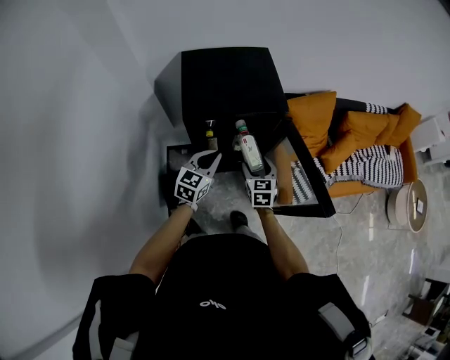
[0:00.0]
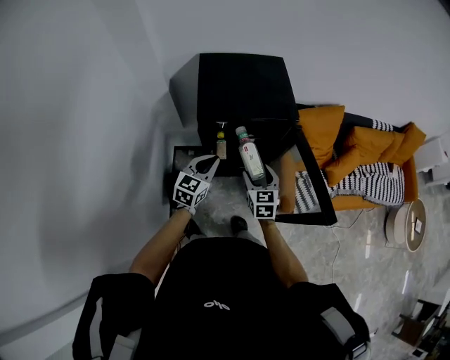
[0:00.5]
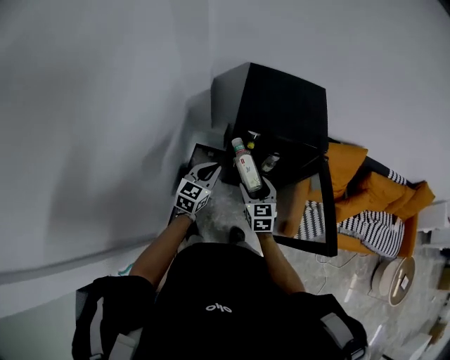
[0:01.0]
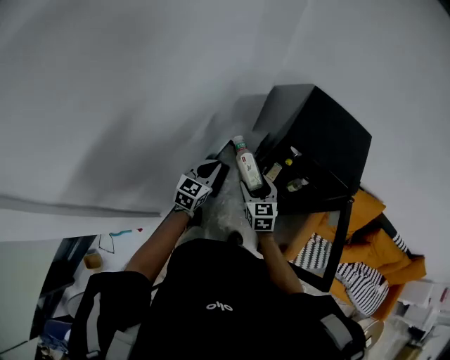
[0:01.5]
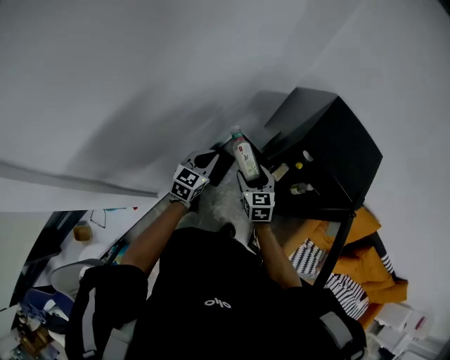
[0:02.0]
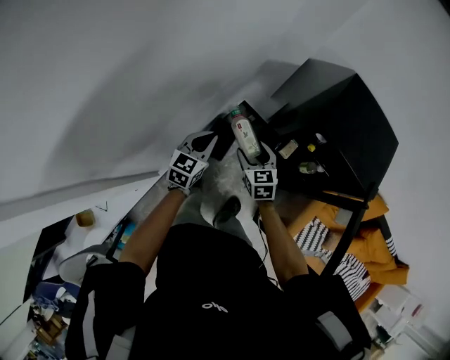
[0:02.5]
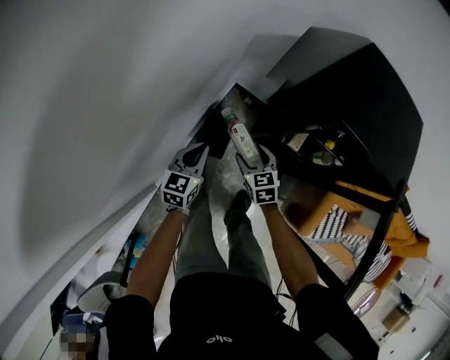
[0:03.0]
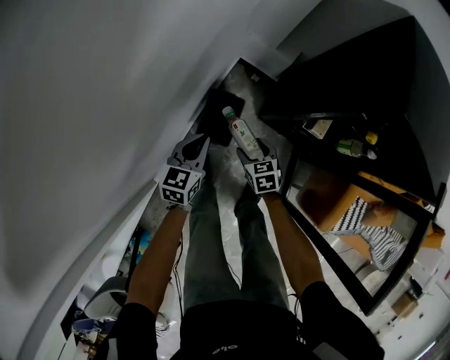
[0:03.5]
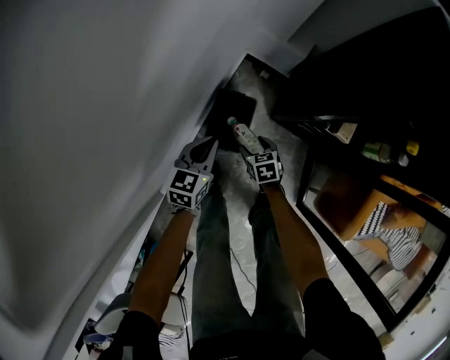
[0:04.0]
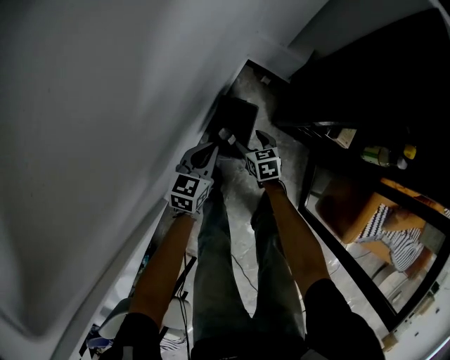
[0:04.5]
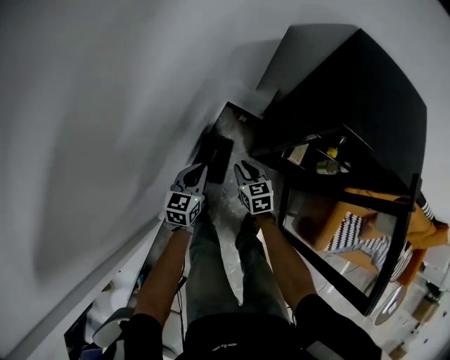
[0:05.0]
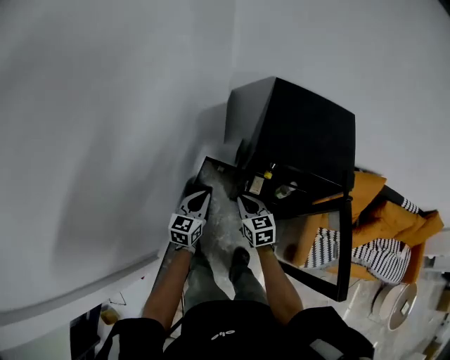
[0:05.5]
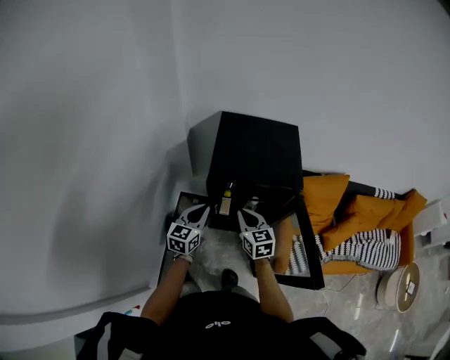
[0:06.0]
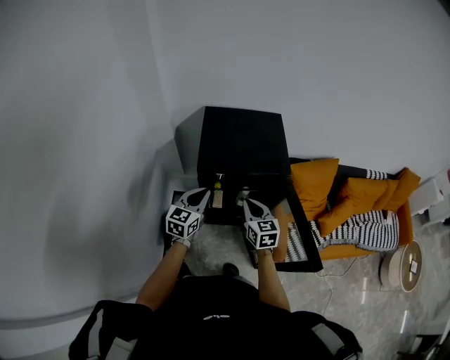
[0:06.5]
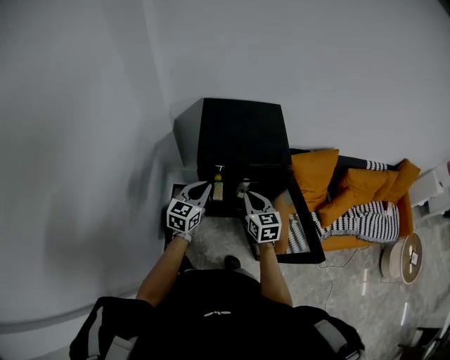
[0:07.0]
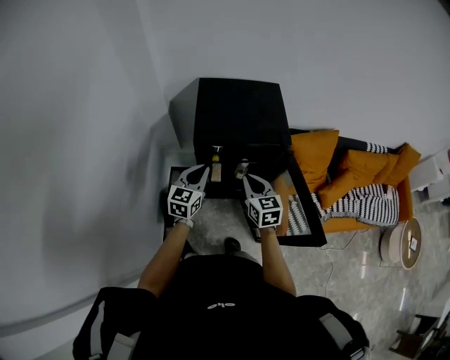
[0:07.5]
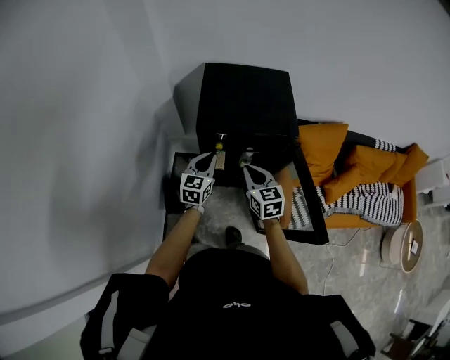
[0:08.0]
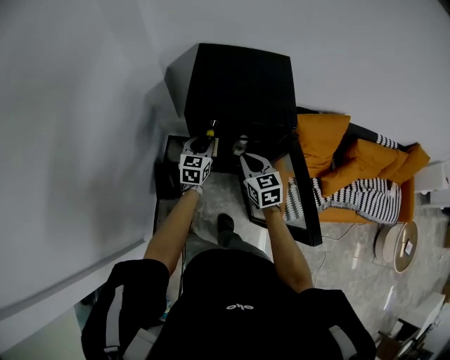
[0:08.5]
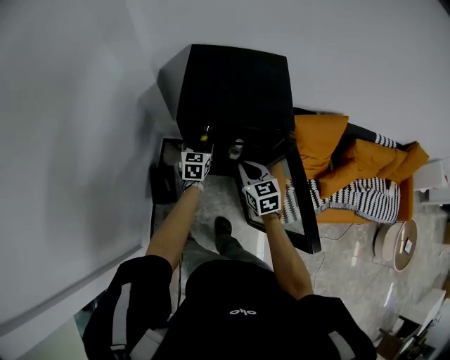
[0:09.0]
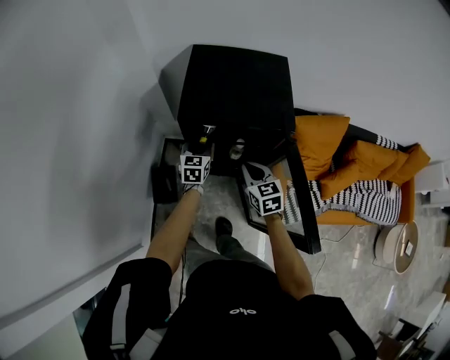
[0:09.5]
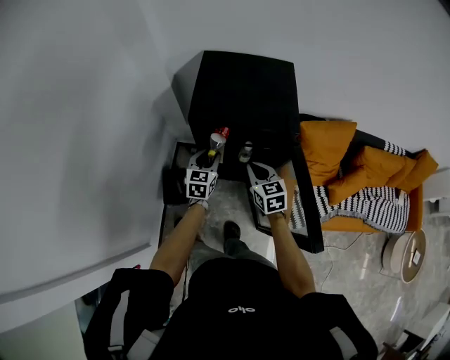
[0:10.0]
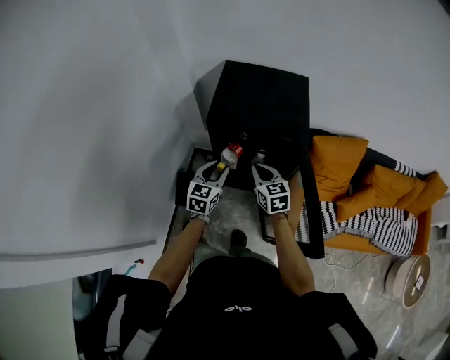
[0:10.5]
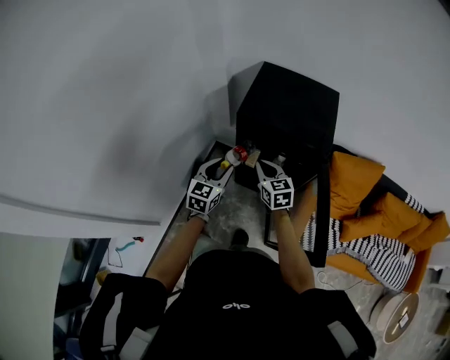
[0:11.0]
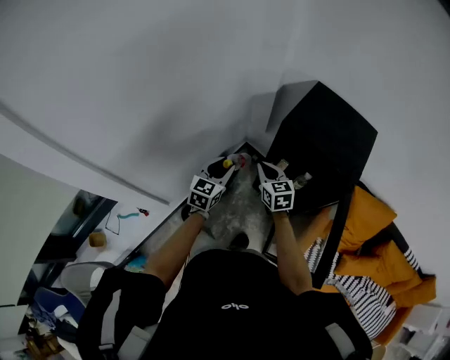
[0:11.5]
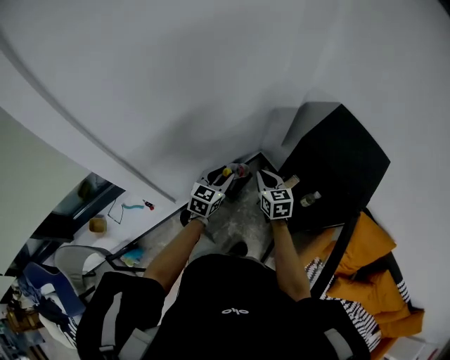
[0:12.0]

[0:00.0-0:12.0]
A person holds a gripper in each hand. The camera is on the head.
0:00.0 to 0:02.0: The right gripper shifts by approximately 30 cm, and changes its angle by roughly 50 degrees. Meanwhile the left gripper moves approximately 30 cm, and changes its angle by some 50 degrees.
0:02.0 to 0:04.0: The grippers both shift downward by roughly 50 cm. The right gripper swivels approximately 30 degrees.
0:04.0 to 0:06.0: Both grippers travel together upward and to the right, some 60 cm. The left gripper turns by approximately 20 degrees. Meanwhile the right gripper points its fingers about 30 degrees further upward, and closes.
0:06.0 to 0:08.0: The grippers both shift to the right by some 5 cm.
0:08.0 to 0:10.0: Both grippers move downward, approximately 5 cm. The left gripper opens its fingers.
0:10.0 to 0:12.0: The left gripper moves approximately 30 cm, and turns by approximately 30 degrees. Meanwhile the right gripper moves about 25 cm, and swivels some 40 degrees.

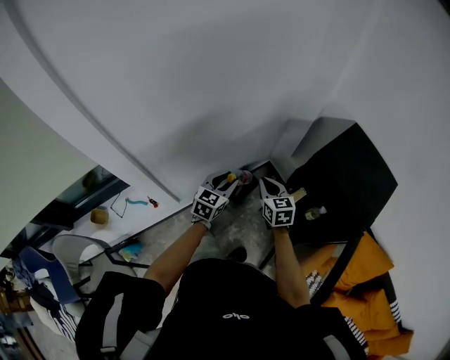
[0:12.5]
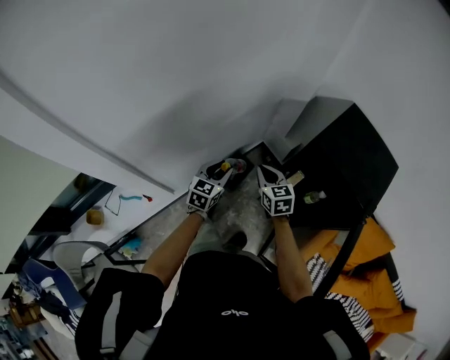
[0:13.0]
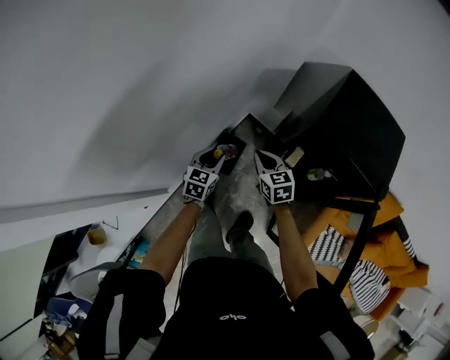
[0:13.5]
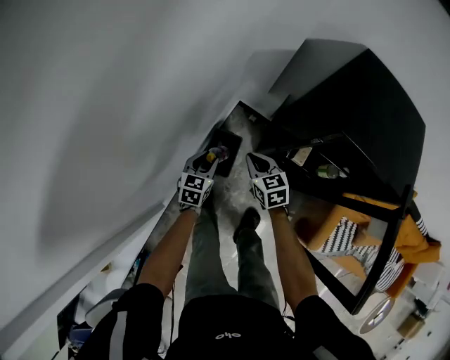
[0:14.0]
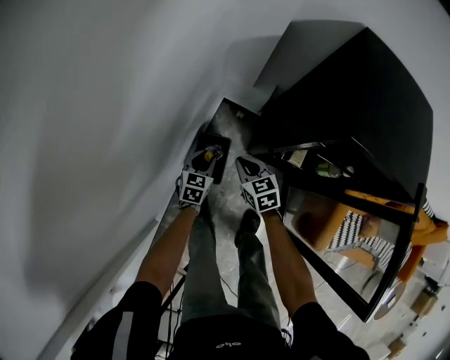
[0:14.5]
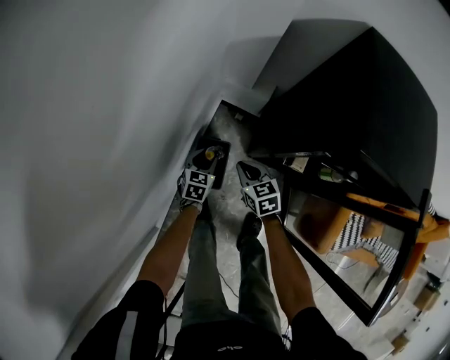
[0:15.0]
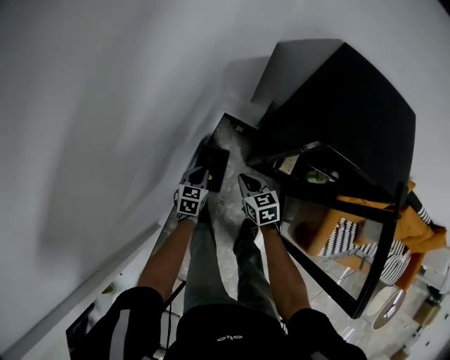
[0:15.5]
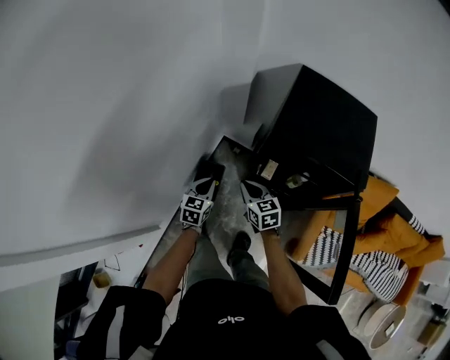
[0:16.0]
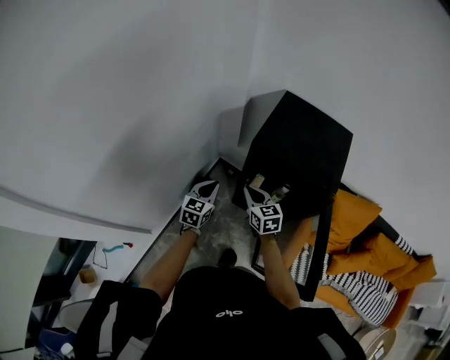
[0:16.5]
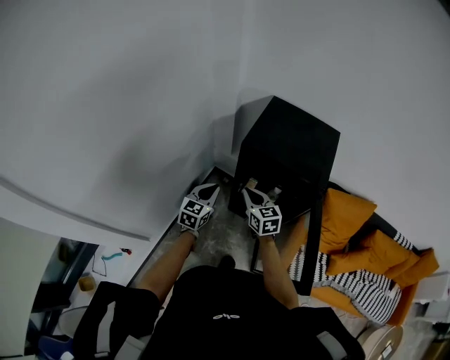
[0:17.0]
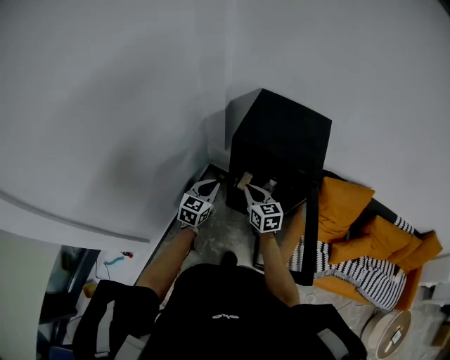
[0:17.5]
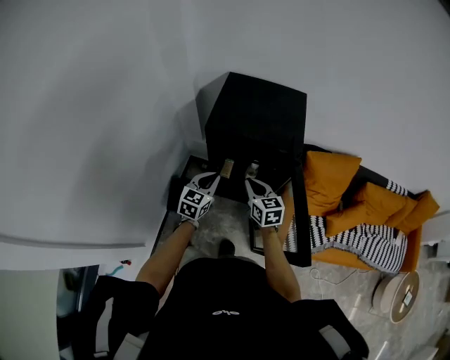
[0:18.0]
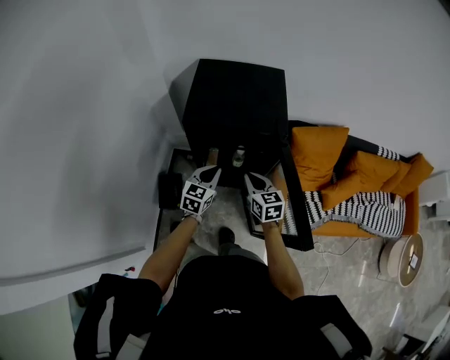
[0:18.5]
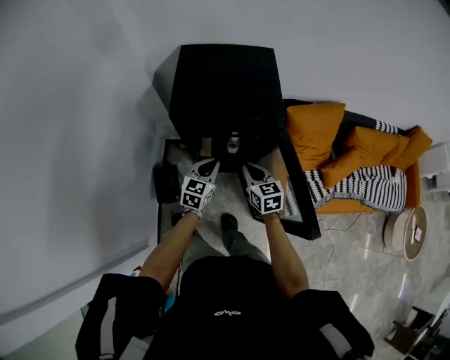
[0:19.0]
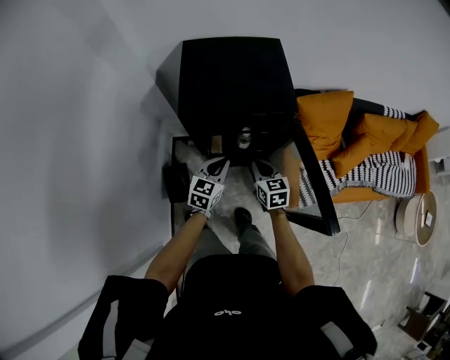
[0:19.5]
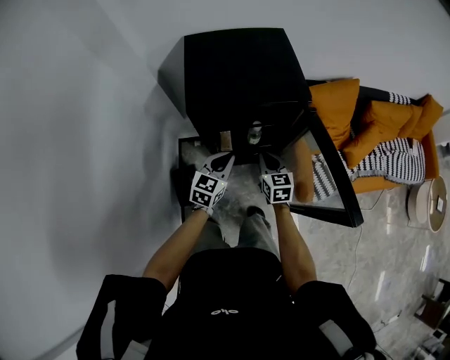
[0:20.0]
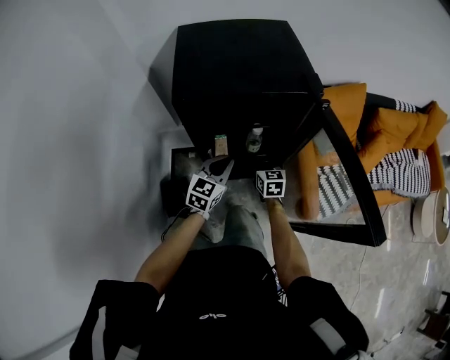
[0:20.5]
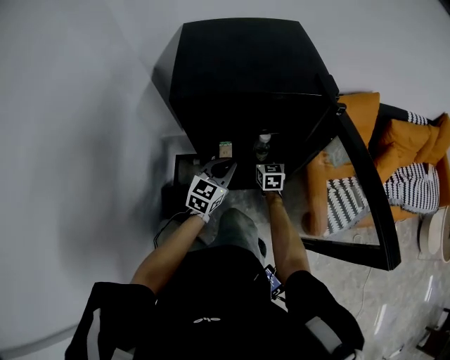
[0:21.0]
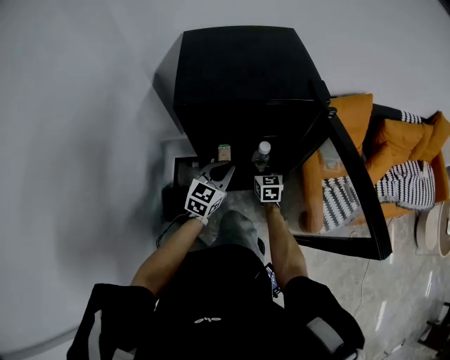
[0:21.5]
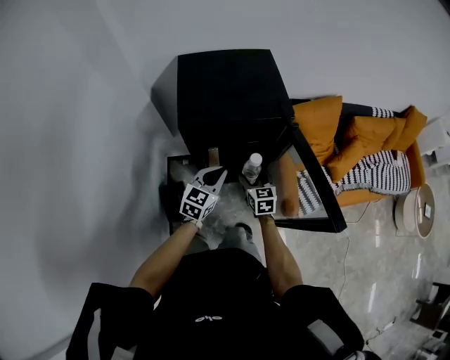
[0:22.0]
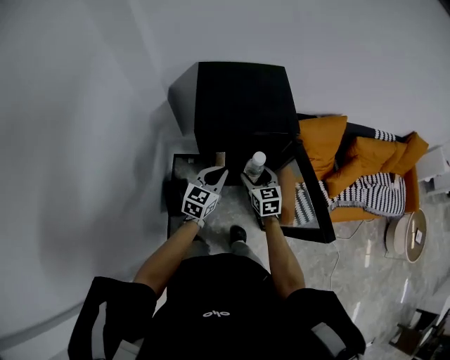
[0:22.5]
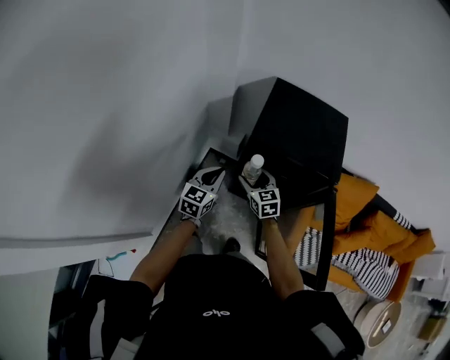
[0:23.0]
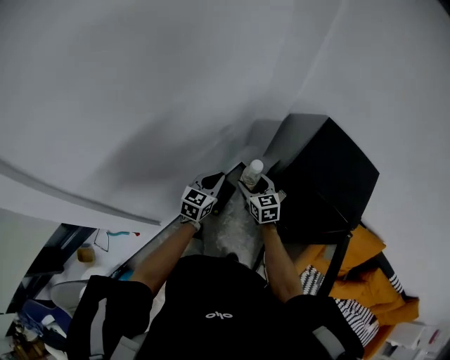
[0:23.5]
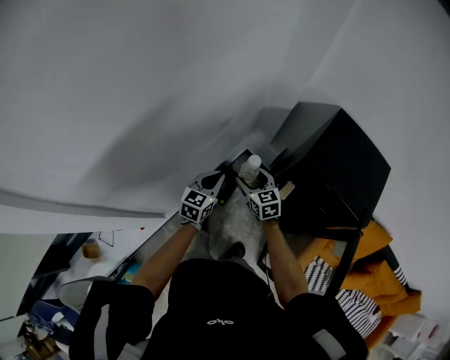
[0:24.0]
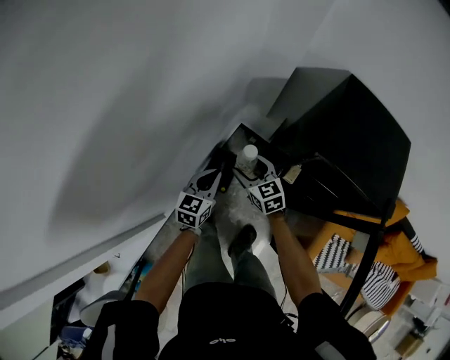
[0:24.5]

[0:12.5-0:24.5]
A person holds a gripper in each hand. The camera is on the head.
0:12.5 to 0:14.5: The grippers both shift downward and forward by roughly 40 cm. The right gripper rotates some 30 degrees; the left gripper swivels some 30 degrees.
0:14.5 to 0:16.5: The left gripper moves upward, some 35 cm, and closes its fingers. Meanwhile the right gripper goes approximately 35 cm upward, to the right and backward.
0:16.5 to 0:18.5: The left gripper moves some 20 cm, and rotates roughly 30 degrees. Meanwhile the right gripper changes place by about 20 cm, and changes its angle by roughly 30 degrees.
0:18.5 to 0:20.5: The left gripper is displaced downward by some 15 cm, while the right gripper heads downward, covering roughly 25 cm, and opens up.
0:20.5 to 0:22.5: The two grippers go about 20 cm upward.
0:22.5 to 0:24.5: The right gripper shifts by some 35 cm, and changes its angle by roughly 50 degrees; the left gripper shifts by about 35 cm, and swivels approximately 40 degrees.

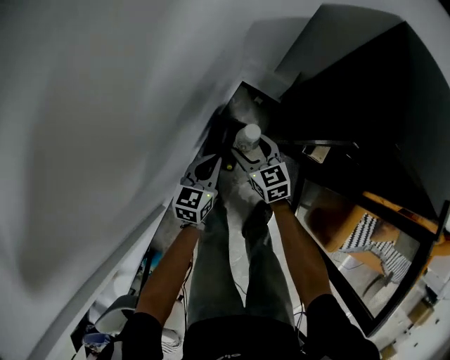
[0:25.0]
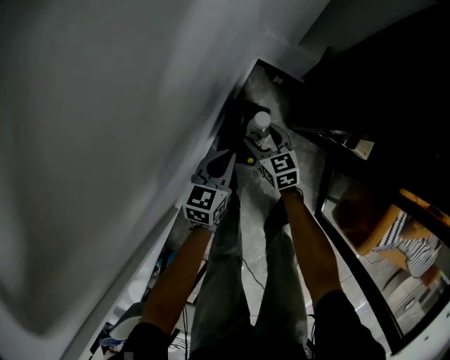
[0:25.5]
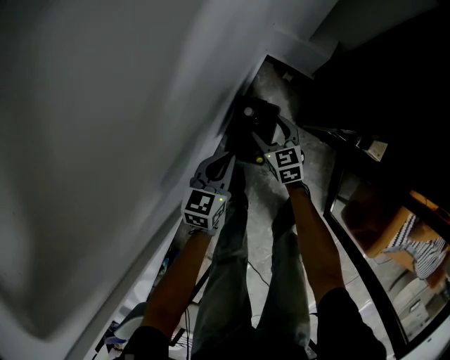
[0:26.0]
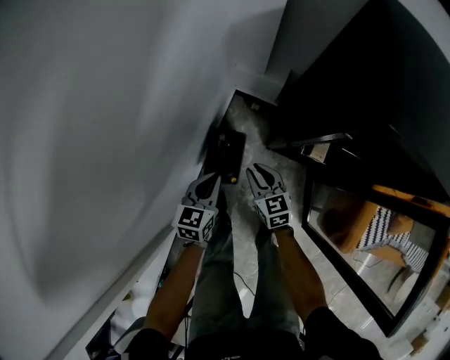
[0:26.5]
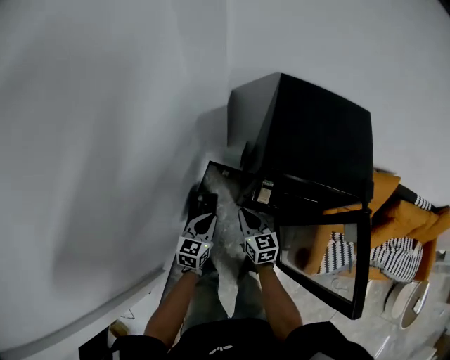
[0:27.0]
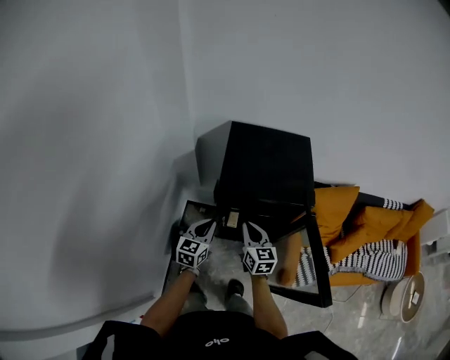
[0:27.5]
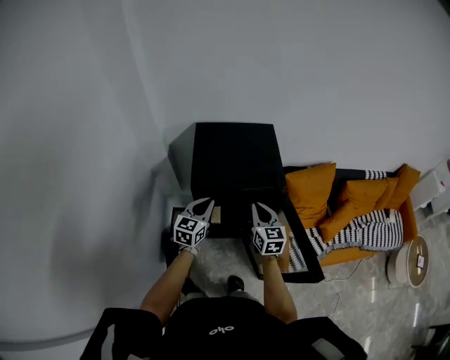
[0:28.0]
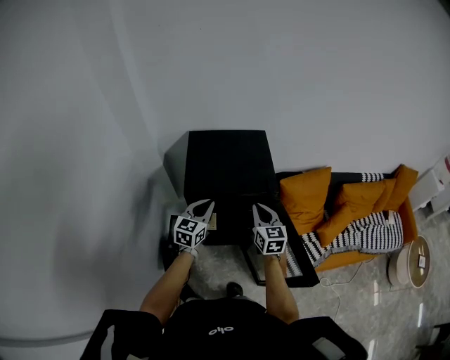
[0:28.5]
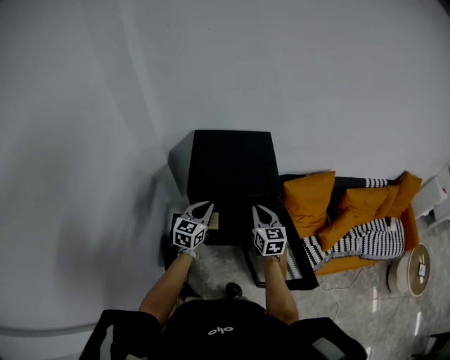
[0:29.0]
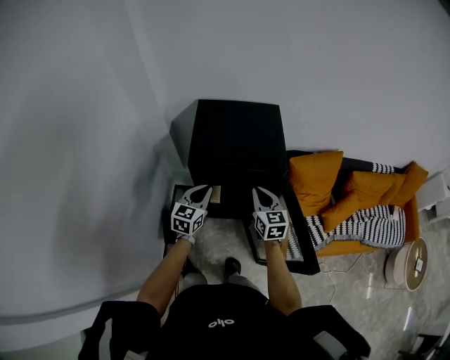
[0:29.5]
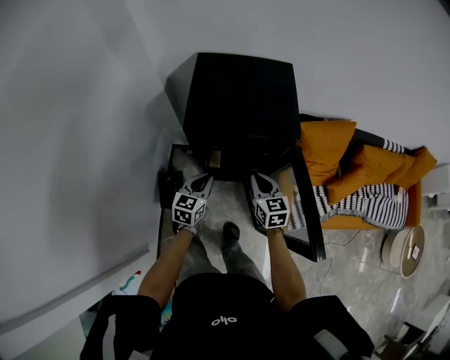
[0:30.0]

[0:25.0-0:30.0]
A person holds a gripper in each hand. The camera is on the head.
0:25.0 to 0:27.5: Both grippers travel together upward, roughly 30 cm. The left gripper changes its angle by approximately 20 degrees. The right gripper turns by about 40 degrees, and closes up.
0:27.5 to 0:30.0: Both grippers move to the right and downward, roughly 10 cm.
